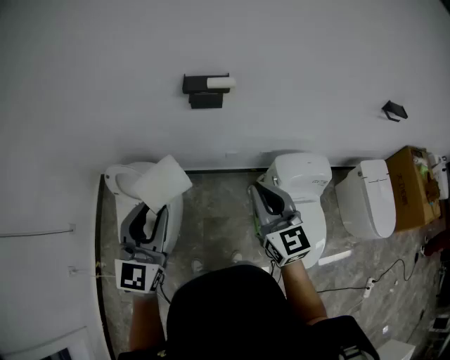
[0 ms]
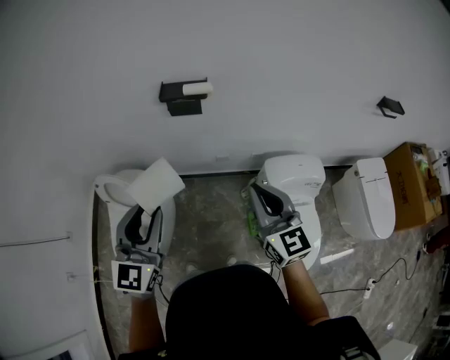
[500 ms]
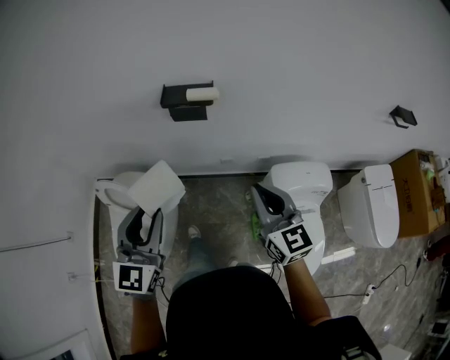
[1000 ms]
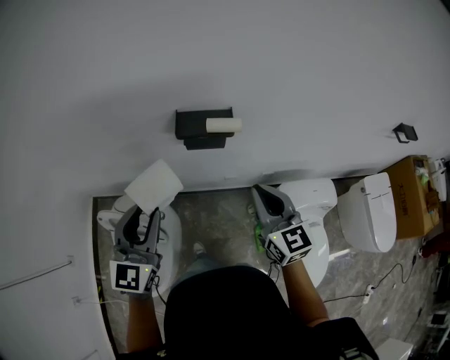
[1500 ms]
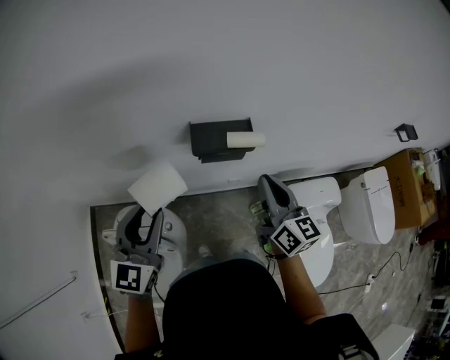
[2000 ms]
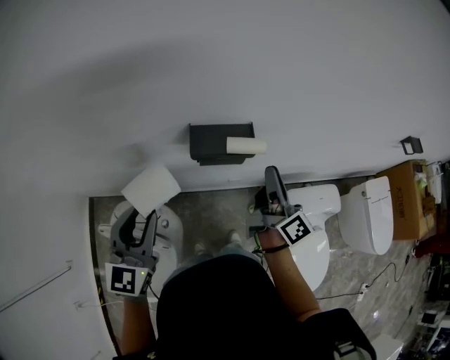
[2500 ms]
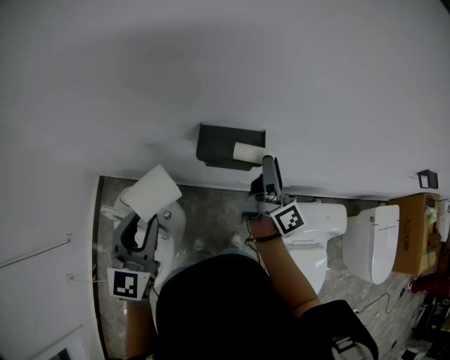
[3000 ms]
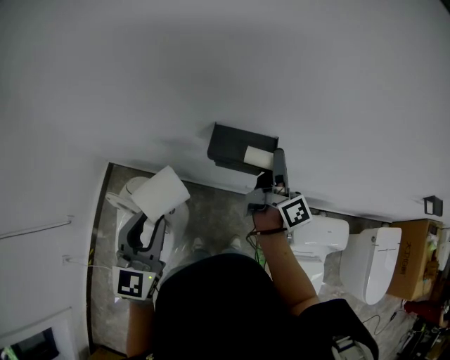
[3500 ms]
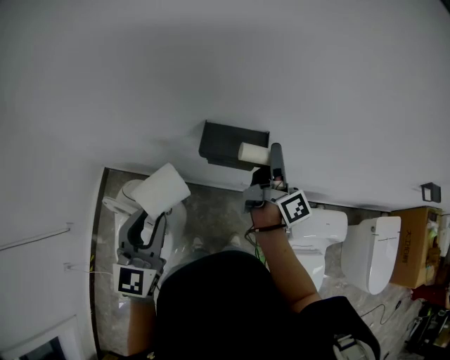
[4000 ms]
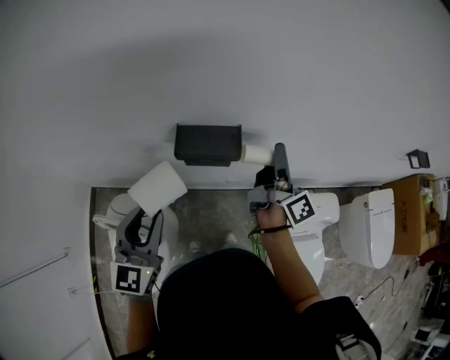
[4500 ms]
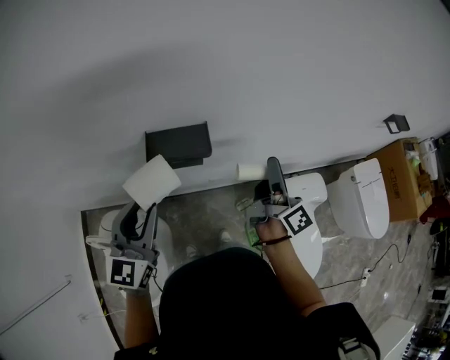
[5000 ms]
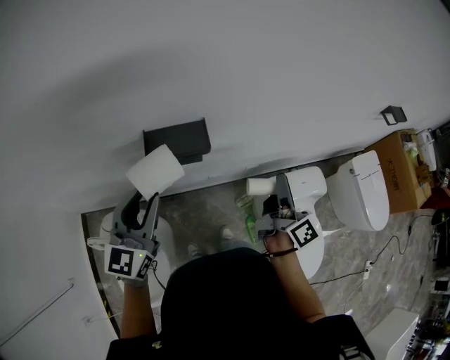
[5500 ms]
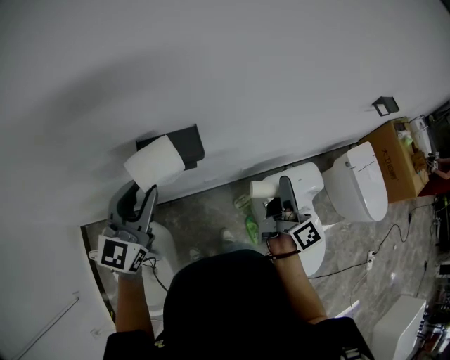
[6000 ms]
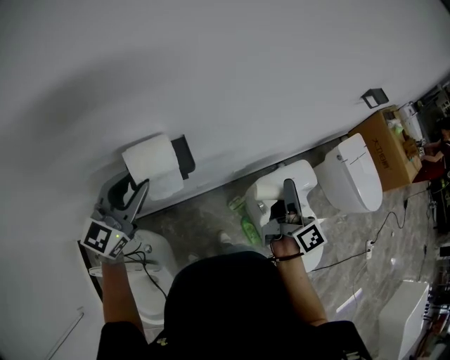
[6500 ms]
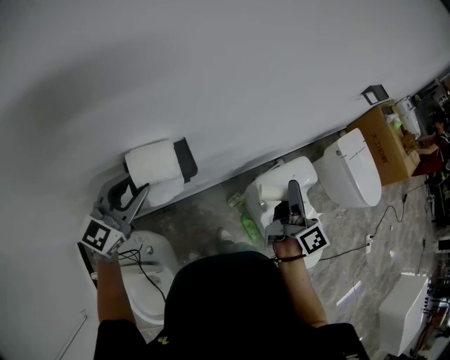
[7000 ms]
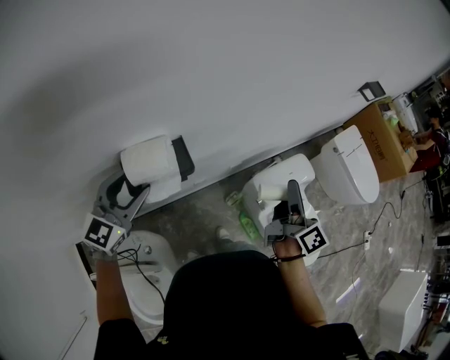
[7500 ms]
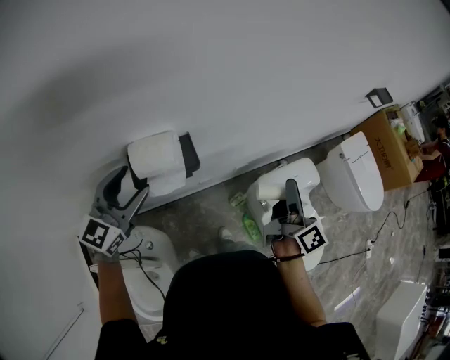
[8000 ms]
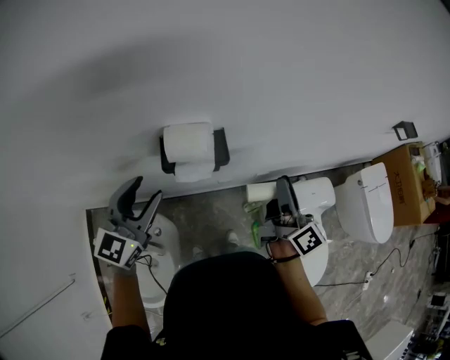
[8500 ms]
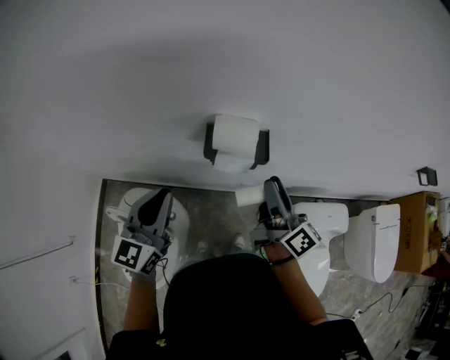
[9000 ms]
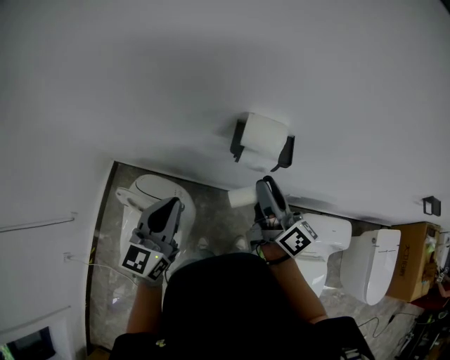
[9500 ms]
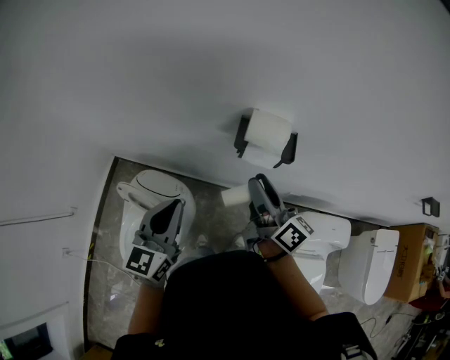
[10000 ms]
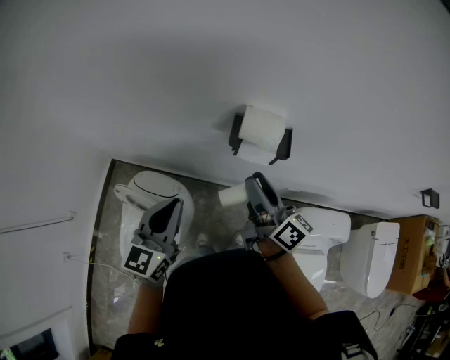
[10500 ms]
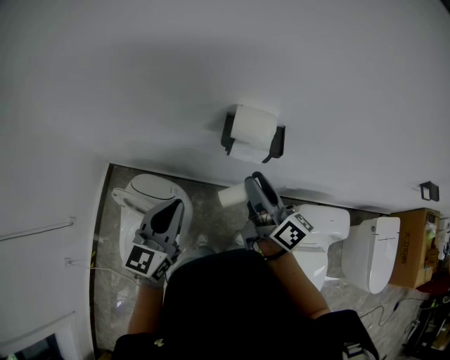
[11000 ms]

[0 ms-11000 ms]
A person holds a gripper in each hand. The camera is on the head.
0 ms to 2000 ms: The grippers both shift forward by roughly 30 cm. The right gripper swivels some 20 degrees.
2000 ms to 3500 ms: The right gripper moves forward, some 15 cm, rotates around the line of its fingers by roughly 40 degrees, clockwise from behind, and opens its fingers. The left gripper turns by some 20 degrees.
3500 ms to 5500 ms: The right gripper is displaced to the right and backward by roughly 25 cm, and rotates about 20 degrees; the left gripper travels forward and to the right by some 10 cm, and changes its angle by roughly 30 degrees.
5500 ms to 7500 ms: The left gripper shifts approximately 10 cm forward, and swivels roughly 30 degrees, while the right gripper shifts about 5 cm to the right.
7500 ms to 9000 ms: The right gripper changes place by about 25 cm, and swivels about 40 degrees; the left gripper changes place by about 20 cm, changes its angle by about 40 degrees, and closes.
9000 ms to 11000 ms: The left gripper travels backward by roughly 5 cm. Meanwhile the right gripper heads to the left, covering about 10 cm.

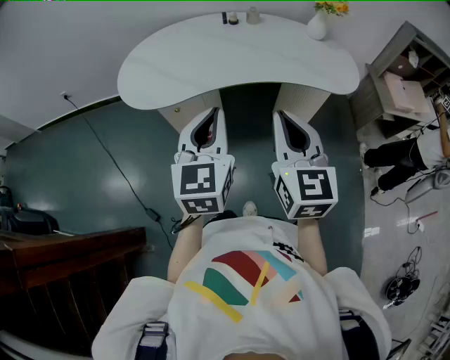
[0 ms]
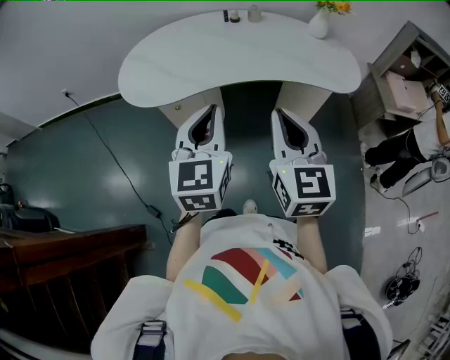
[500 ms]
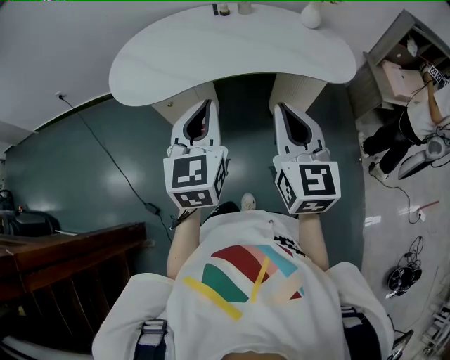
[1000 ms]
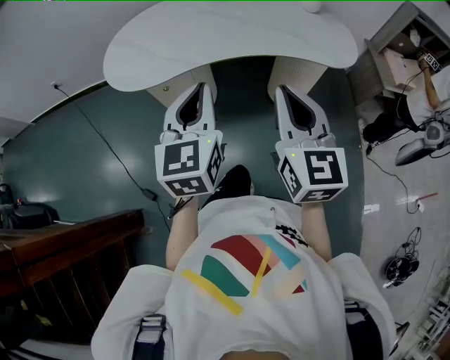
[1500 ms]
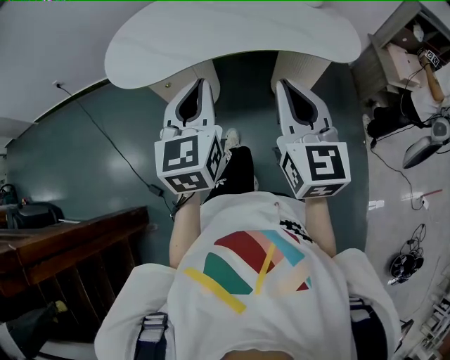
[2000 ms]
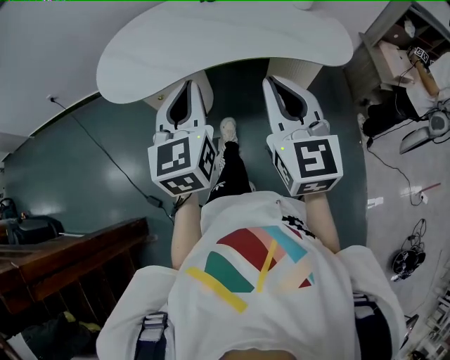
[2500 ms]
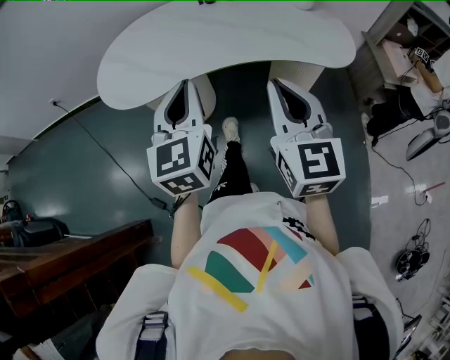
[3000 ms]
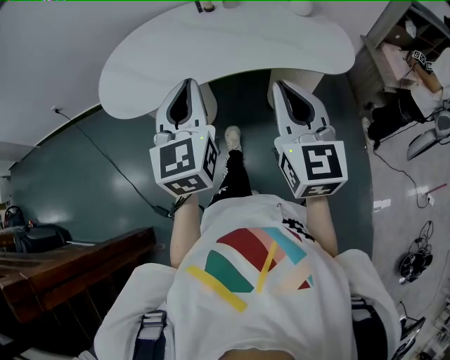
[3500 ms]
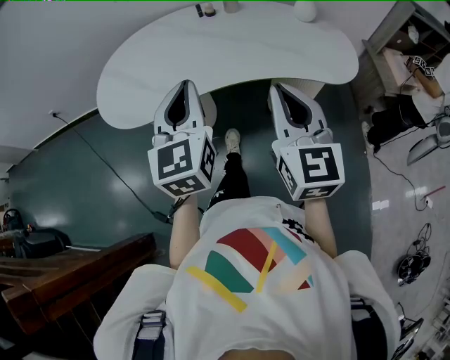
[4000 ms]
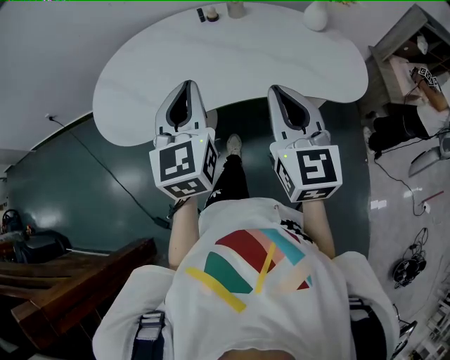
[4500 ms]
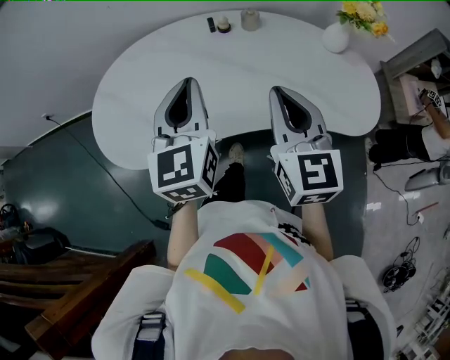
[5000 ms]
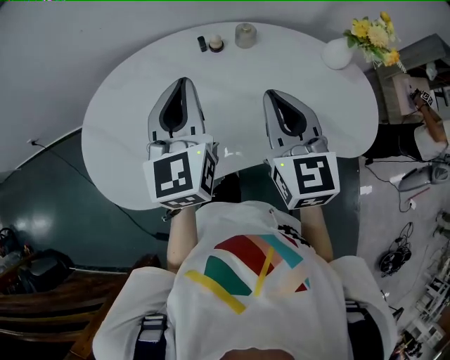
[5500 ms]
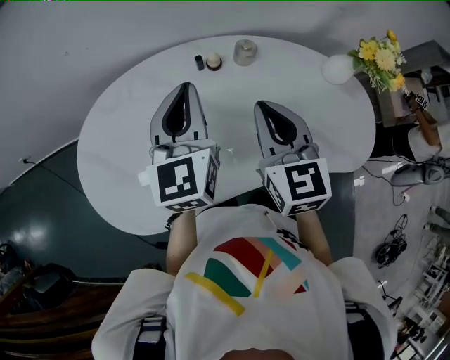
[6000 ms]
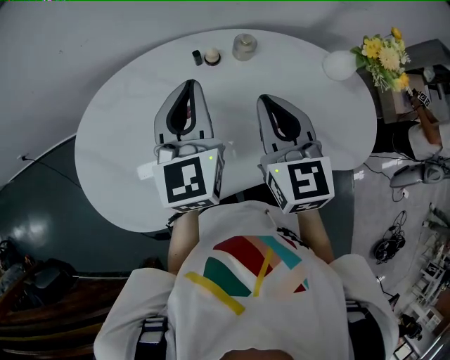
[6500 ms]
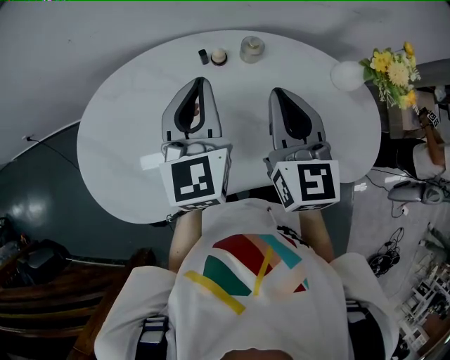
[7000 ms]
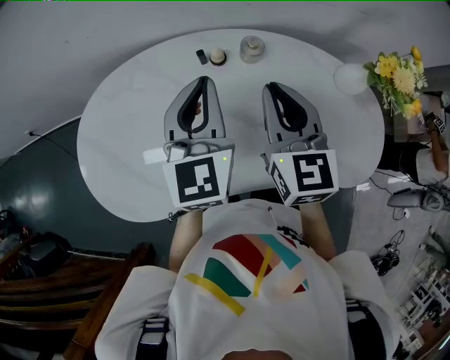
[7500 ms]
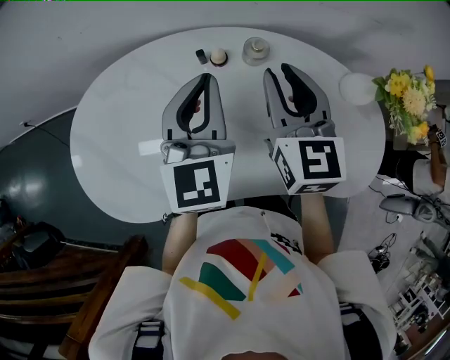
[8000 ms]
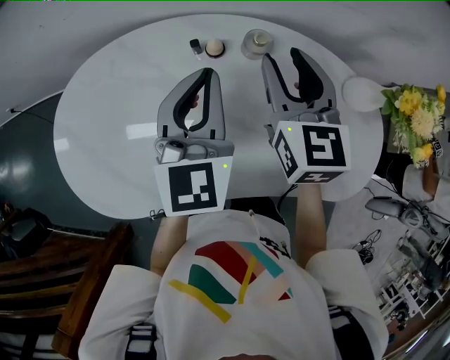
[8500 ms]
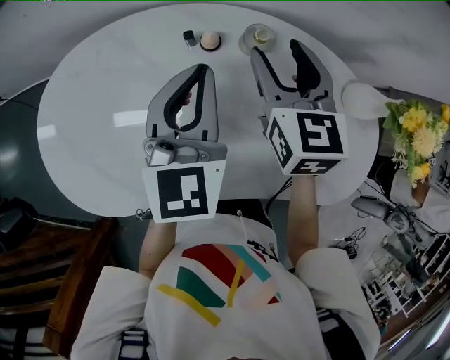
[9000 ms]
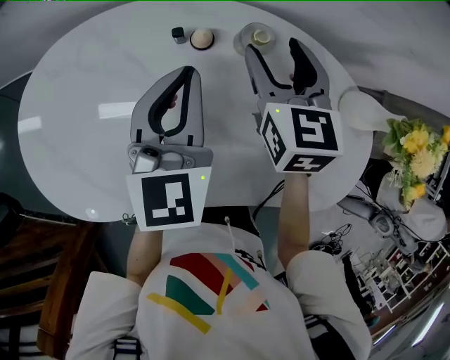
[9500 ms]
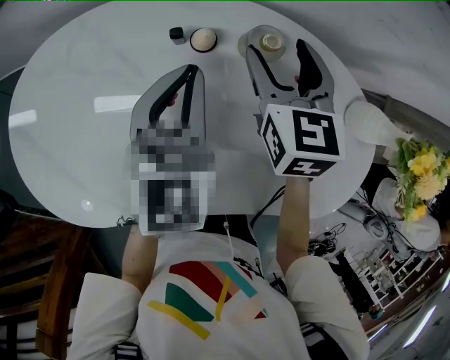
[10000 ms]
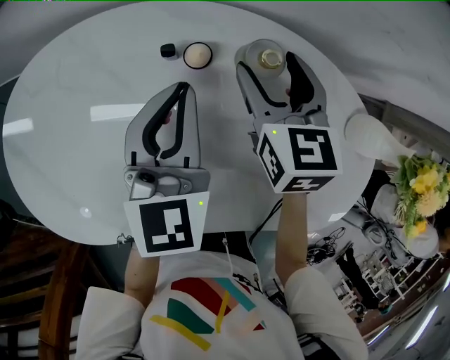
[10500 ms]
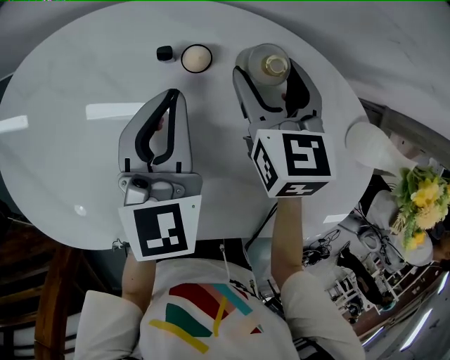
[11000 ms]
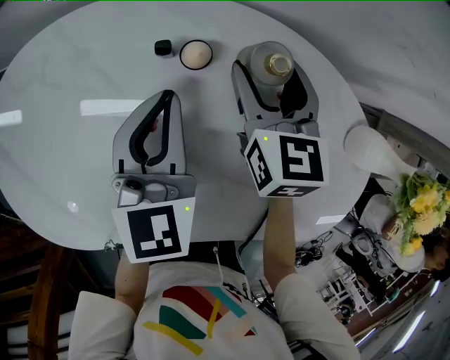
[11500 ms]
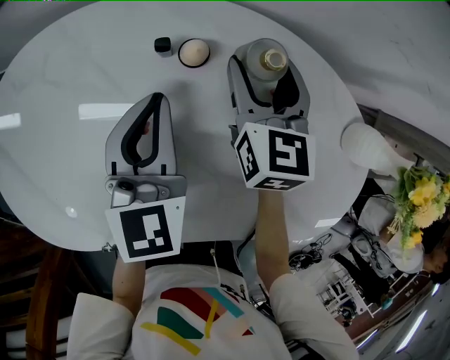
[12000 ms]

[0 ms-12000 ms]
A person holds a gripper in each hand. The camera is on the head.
0 ms to 2000 ms: The grippers make only small movements.
2000 ms to 4000 ms: The two grippers go some 10 cm forward.
4000 ms to 6000 ms: Both grippers move forward, some 40 cm.
6000 ms to 8000 ms: The left gripper travels to the right by approximately 5 cm. The right gripper is displaced forward and to the right by about 10 cm.
8000 ms to 10000 ms: Both grippers travel together downward and forward, approximately 15 cm. The right gripper opens.
10000 ms to 12000 ms: The two grippers go roughly 5 cm downward.

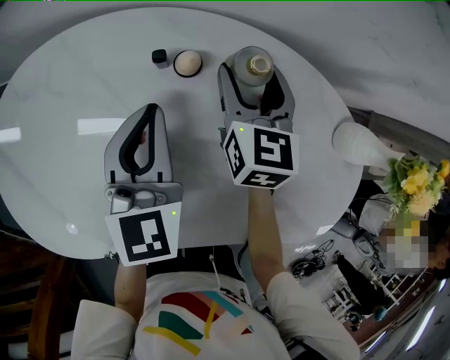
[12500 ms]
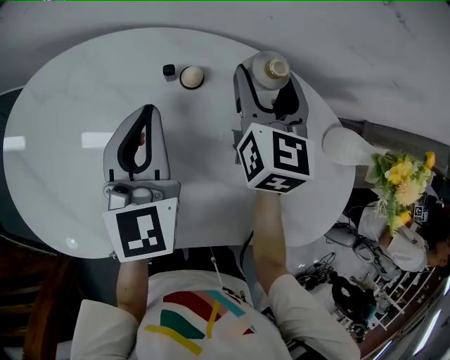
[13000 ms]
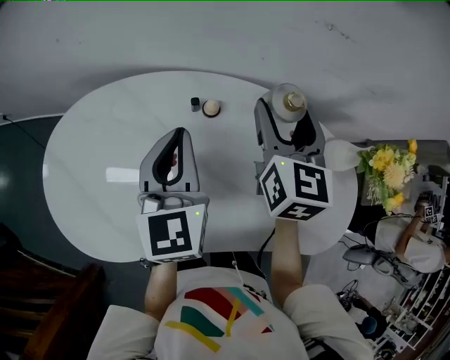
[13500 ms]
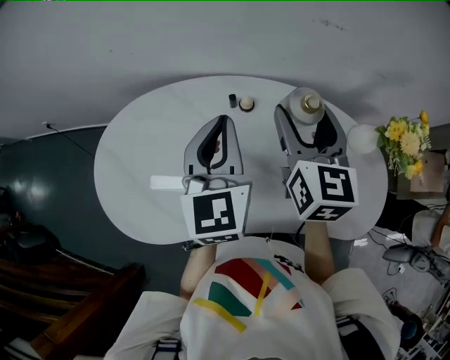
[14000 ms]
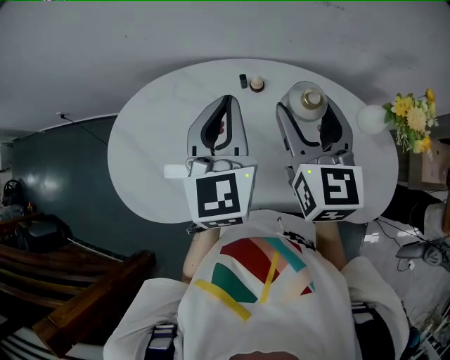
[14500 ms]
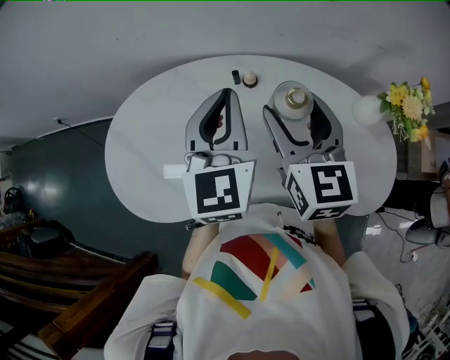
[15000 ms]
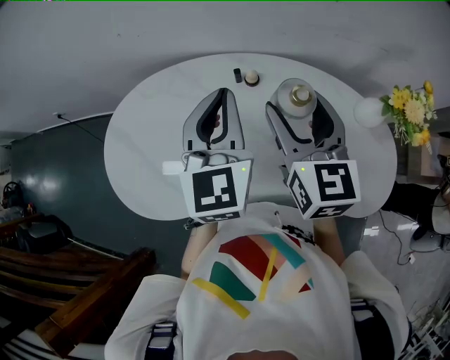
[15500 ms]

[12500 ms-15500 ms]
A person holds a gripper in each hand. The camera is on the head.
12500 ms to 14000 ms: The right gripper shifts roughly 30 cm upward and backward. The left gripper heads upward, covering some 20 cm.
14000 ms to 15500 ms: The right gripper travels backward by some 5 cm.

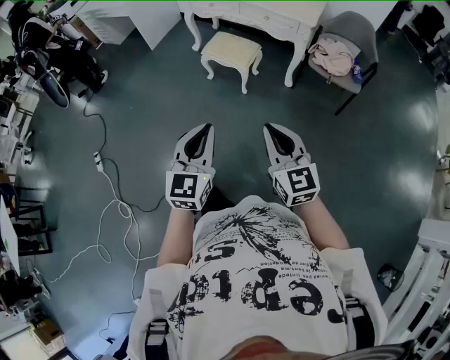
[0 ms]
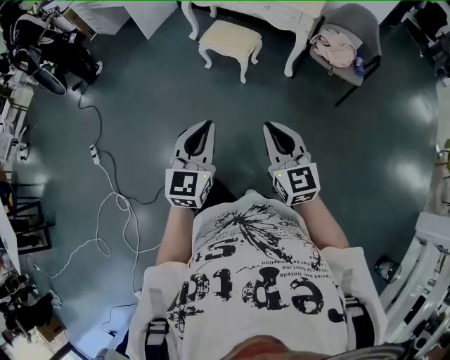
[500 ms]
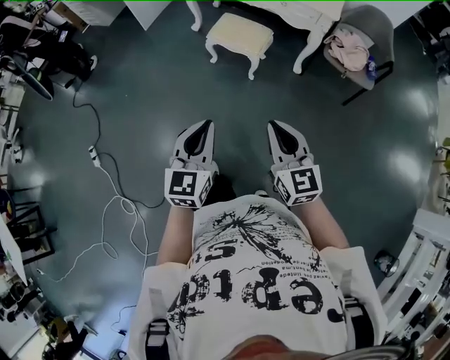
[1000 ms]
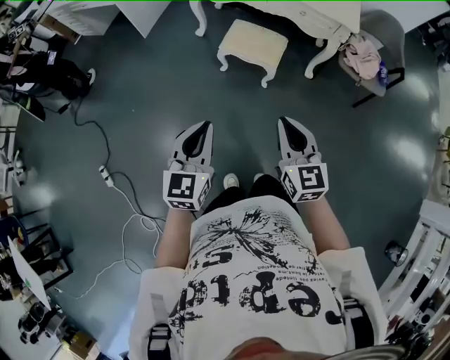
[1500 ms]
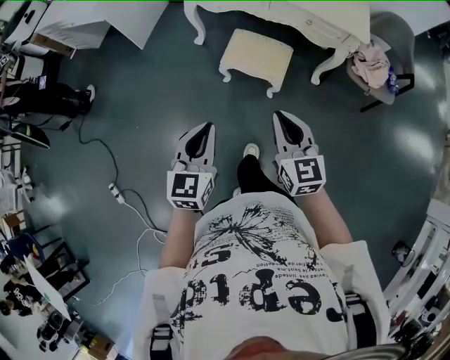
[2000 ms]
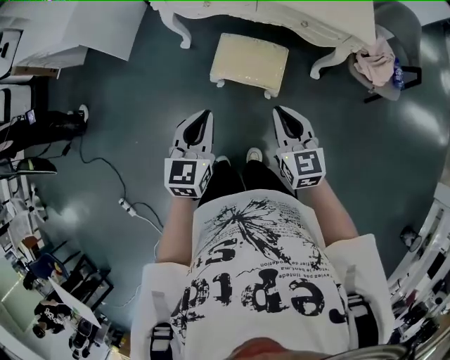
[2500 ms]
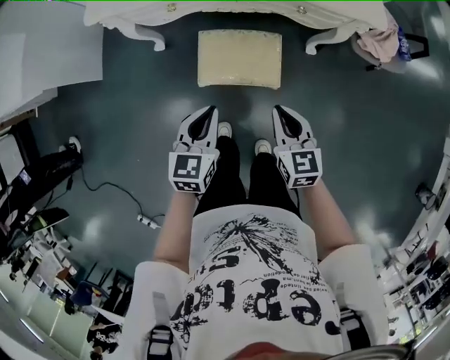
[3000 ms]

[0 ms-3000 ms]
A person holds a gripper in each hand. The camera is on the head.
0 ms to 1500 ms: The grippers both shift forward and to the left by roughly 35 cm.
1500 ms to 3000 ms: The two grippers go approximately 50 cm forward and downward. The left gripper changes its angle by approximately 30 degrees. The right gripper rotates approximately 30 degrees.
